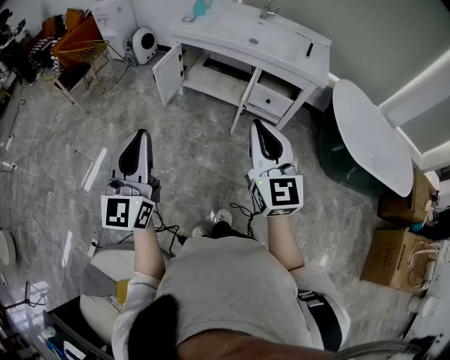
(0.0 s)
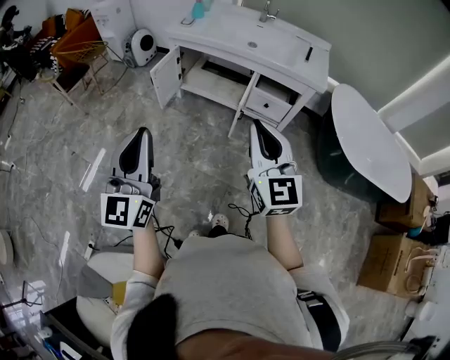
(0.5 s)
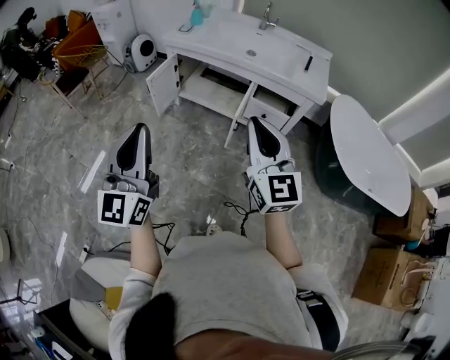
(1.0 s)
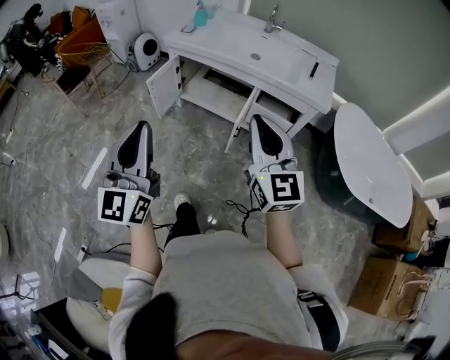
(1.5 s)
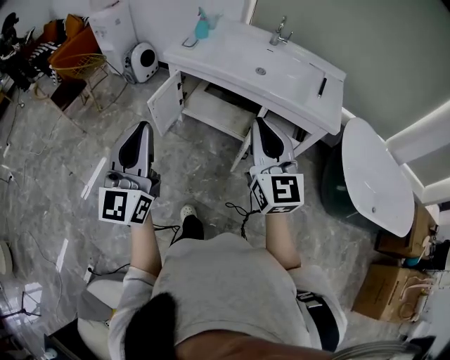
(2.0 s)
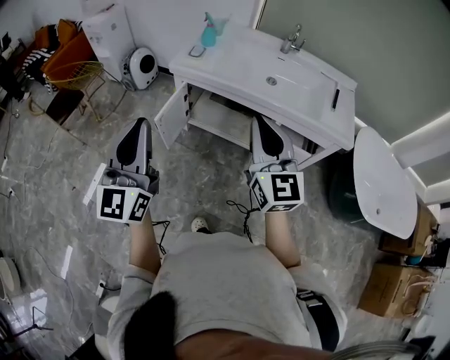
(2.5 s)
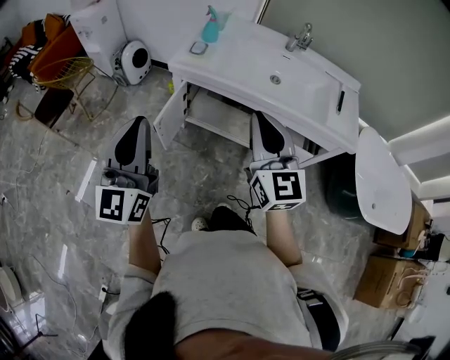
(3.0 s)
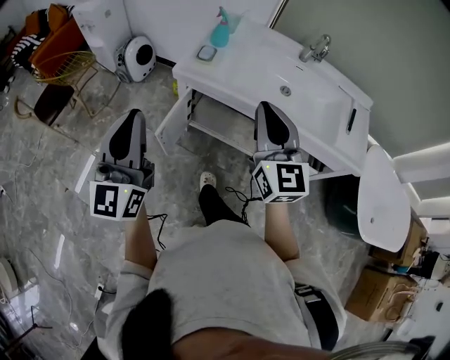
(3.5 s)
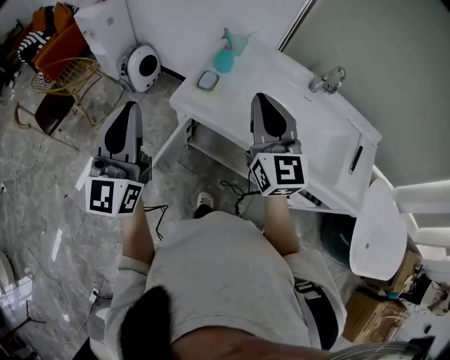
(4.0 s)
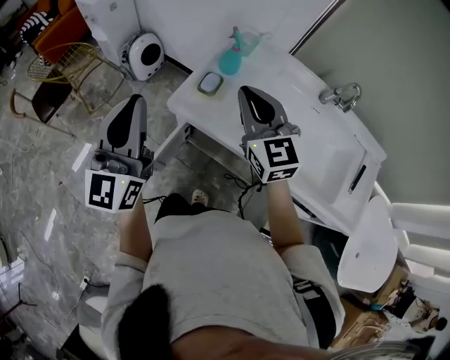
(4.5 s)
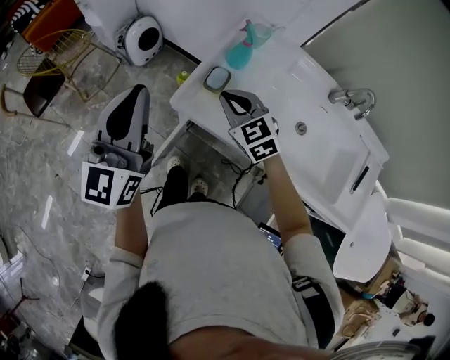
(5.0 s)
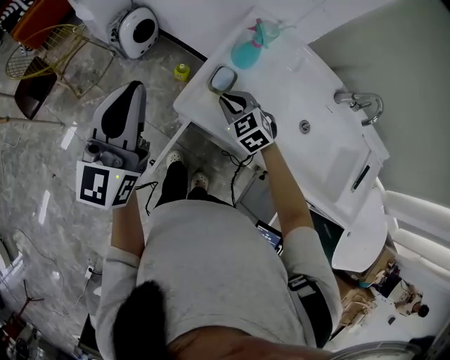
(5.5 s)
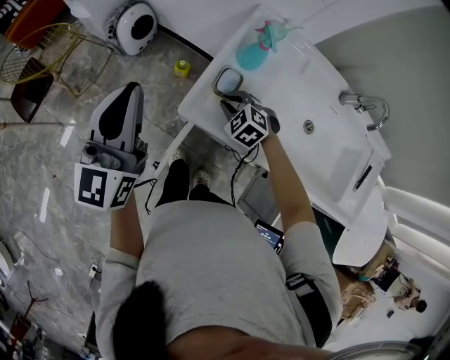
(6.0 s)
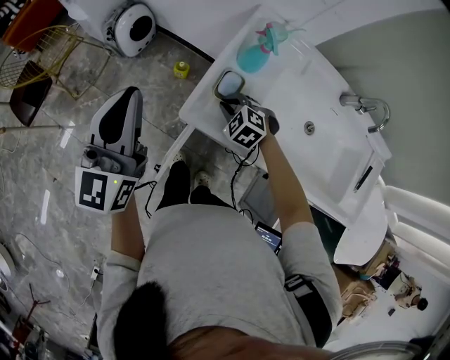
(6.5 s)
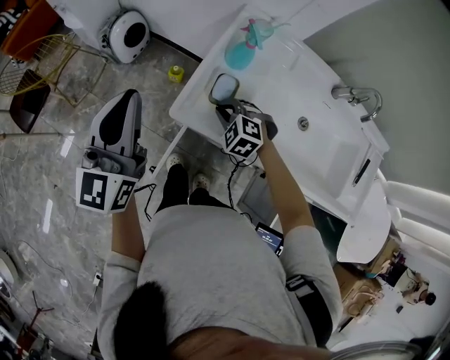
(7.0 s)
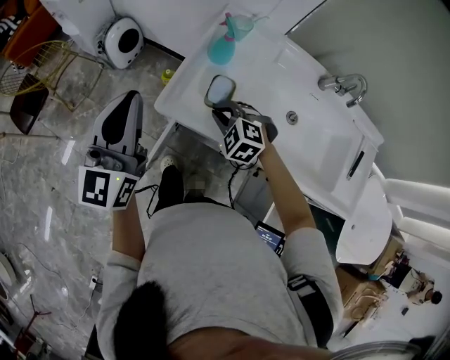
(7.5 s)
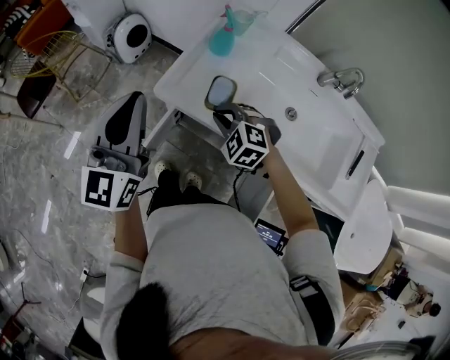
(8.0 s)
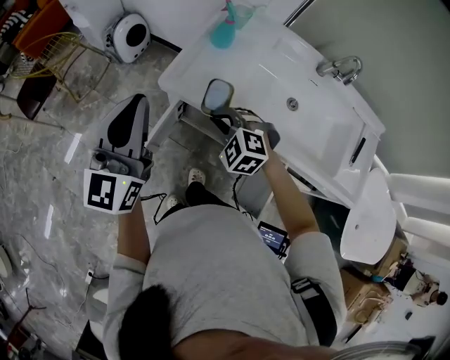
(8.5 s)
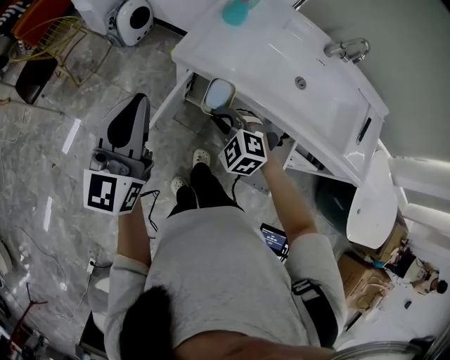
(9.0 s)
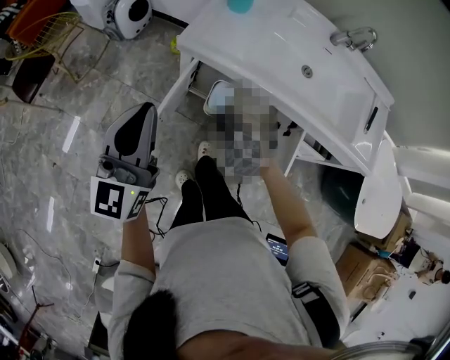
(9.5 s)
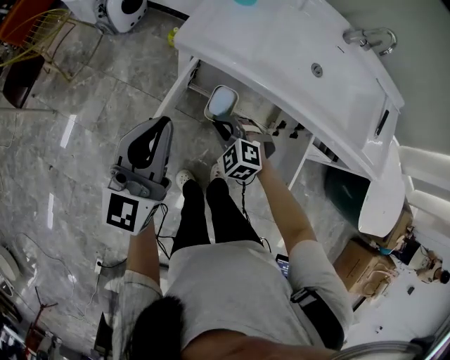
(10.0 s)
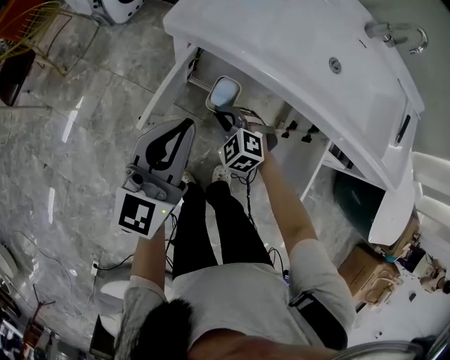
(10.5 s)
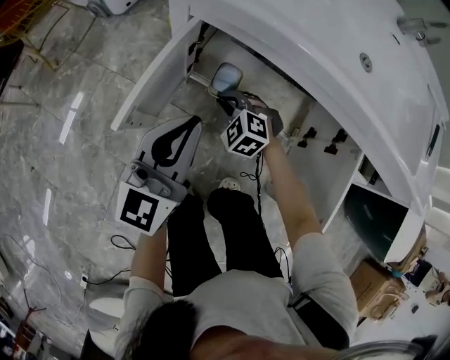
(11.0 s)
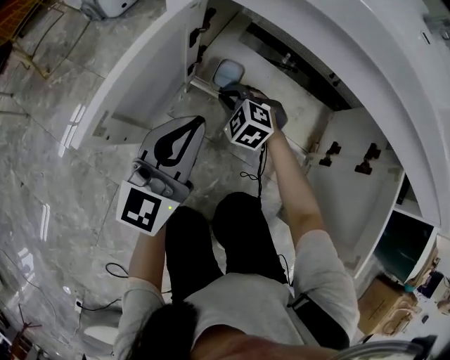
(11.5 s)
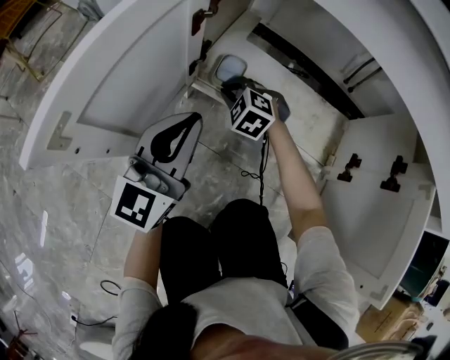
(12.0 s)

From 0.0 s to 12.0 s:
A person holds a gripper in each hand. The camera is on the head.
From 0.0 s to 2.0 s: The two grippers go some 25 cm forward.
From 2.0 s to 4.0 s: The pair of grippers is taken forward, roughly 50 cm.
From 4.0 s to 6.0 s: The left gripper moves forward and downward, approximately 25 cm. The right gripper heads downward and forward, covering some 40 cm, and tilts its fingers some 60 degrees downward.
From 6.0 s to 8.0 s: The right gripper shifts approximately 15 cm backward and upward; the left gripper shifts approximately 15 cm backward and to the right.
From 8.0 s to 10.0 s: The grippers both shift downward, backward and to the left by about 20 cm.
From 10.0 s to 12.0 s: The right gripper heads downward and forward, covering roughly 50 cm; the left gripper goes approximately 50 cm downward.

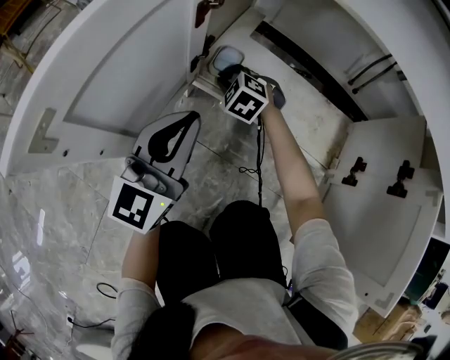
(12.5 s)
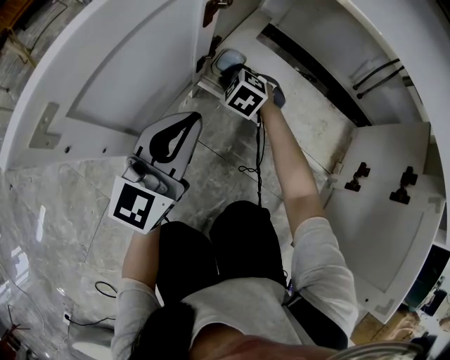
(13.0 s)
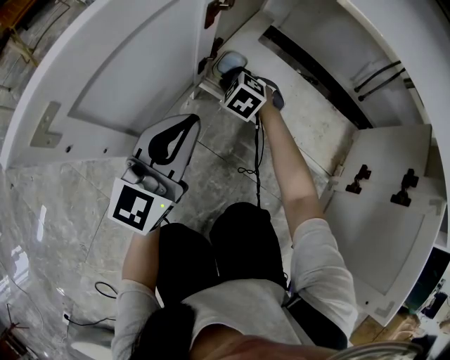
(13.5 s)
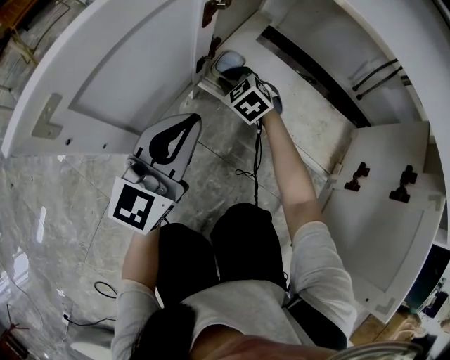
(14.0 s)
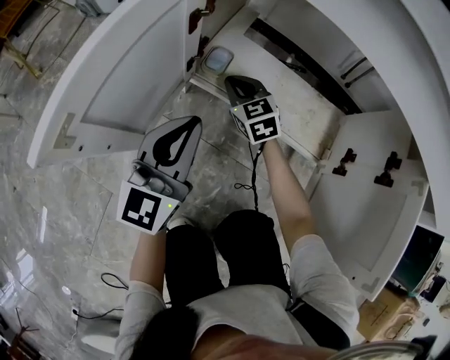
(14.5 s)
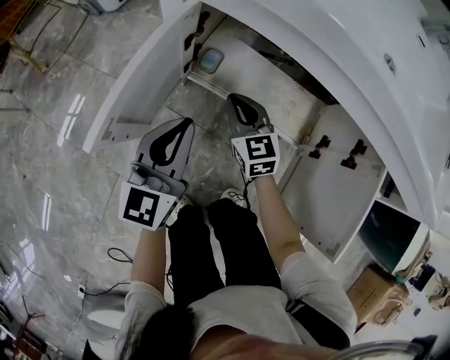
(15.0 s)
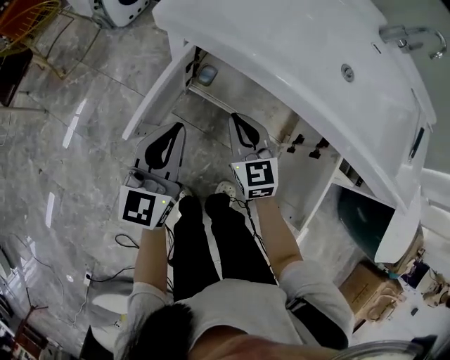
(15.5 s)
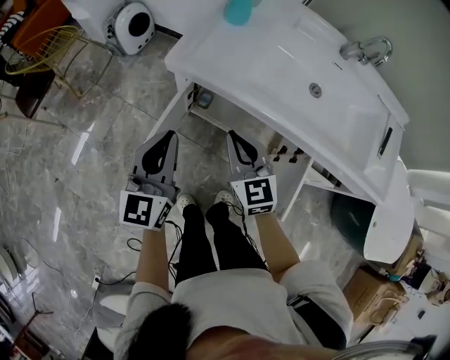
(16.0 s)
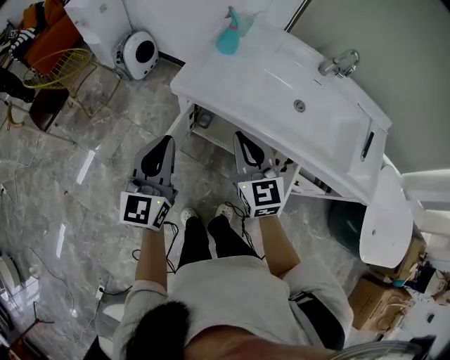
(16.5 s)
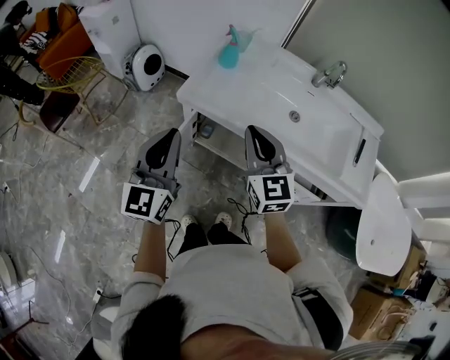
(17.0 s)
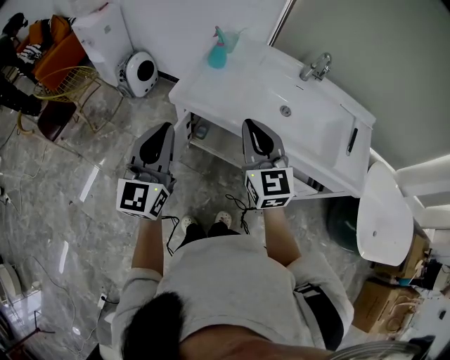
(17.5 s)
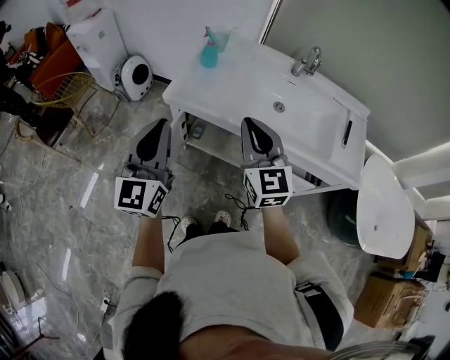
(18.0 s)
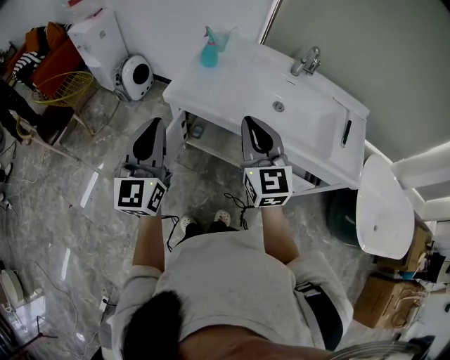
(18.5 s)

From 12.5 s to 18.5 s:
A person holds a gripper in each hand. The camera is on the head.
From 12.5 s to 14.5 s: The right gripper moves upward, about 10 cm, and swivels about 40 degrees.
From 14.5 s to 16.5 s: The grippers both shift upward by roughly 60 cm. The right gripper swivels about 20 degrees.
From 16.5 s to 18.5 s: The left gripper shifts about 15 cm upward and backward; the right gripper moves upward, to the right and backward, approximately 15 cm.

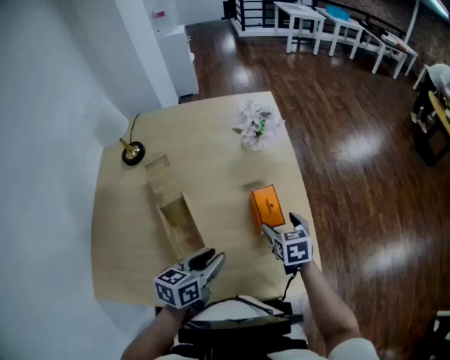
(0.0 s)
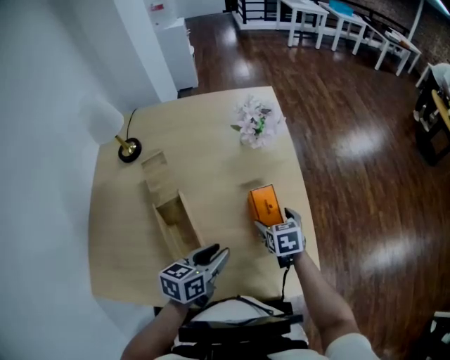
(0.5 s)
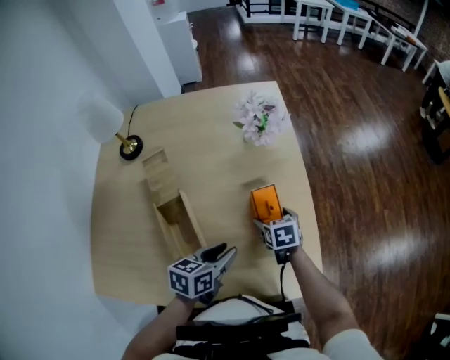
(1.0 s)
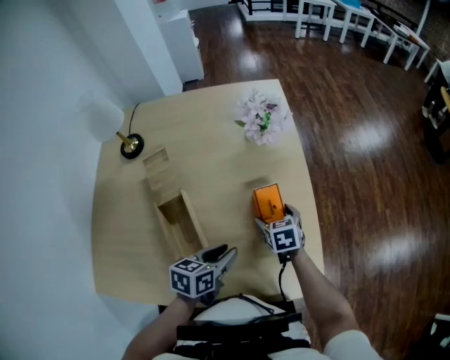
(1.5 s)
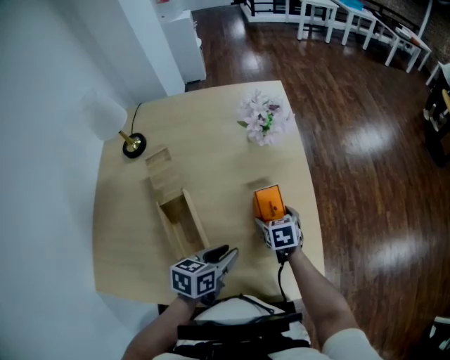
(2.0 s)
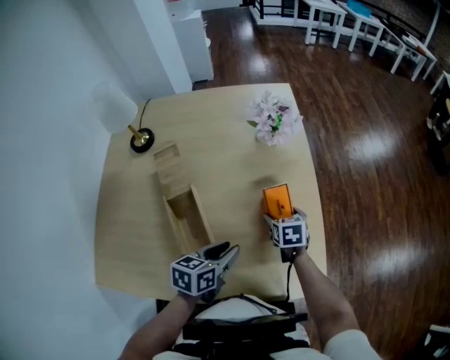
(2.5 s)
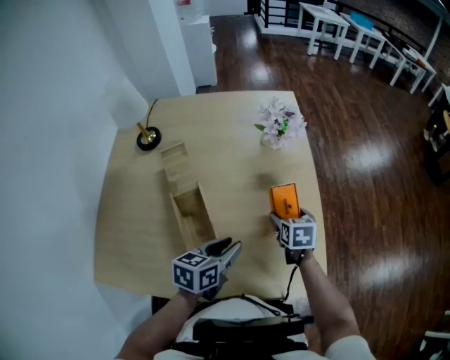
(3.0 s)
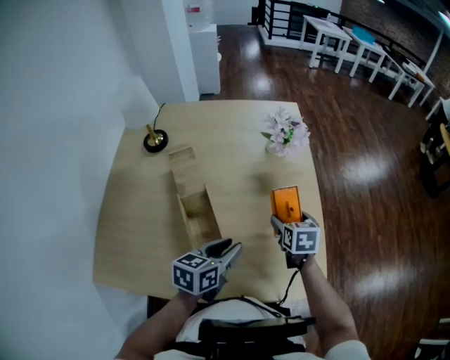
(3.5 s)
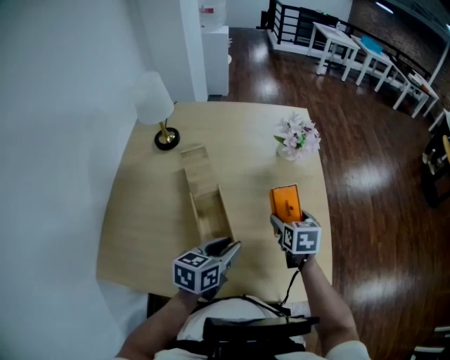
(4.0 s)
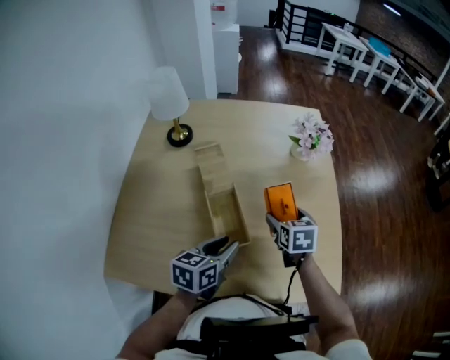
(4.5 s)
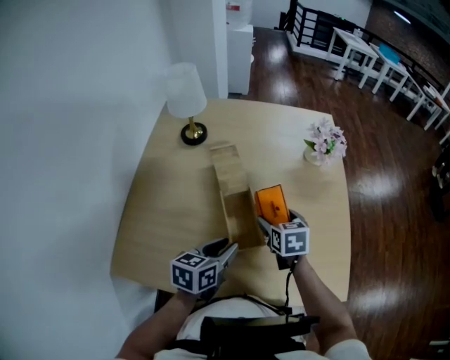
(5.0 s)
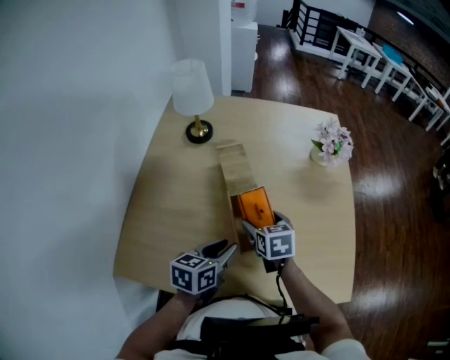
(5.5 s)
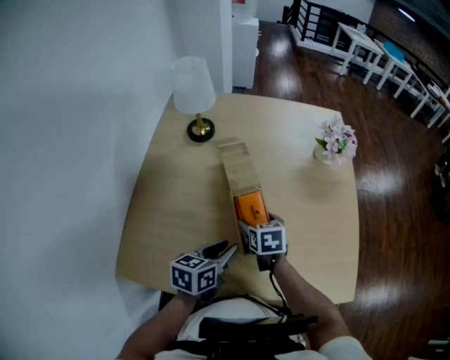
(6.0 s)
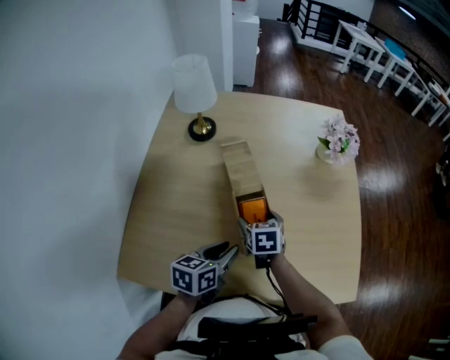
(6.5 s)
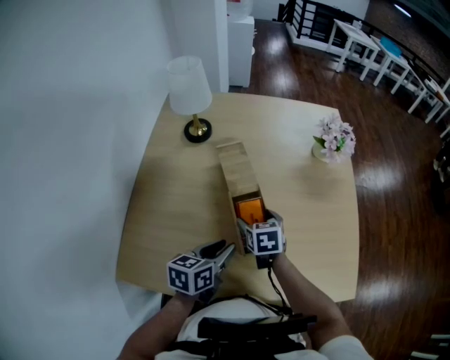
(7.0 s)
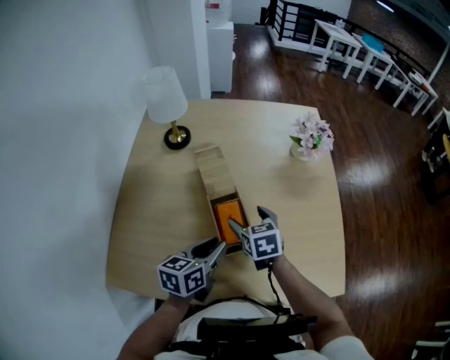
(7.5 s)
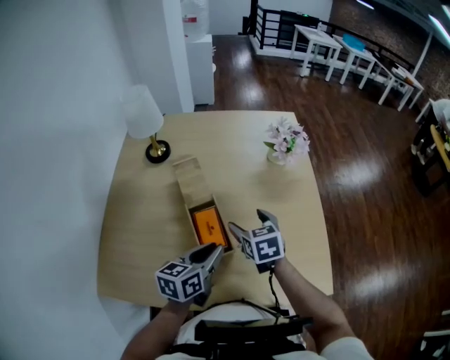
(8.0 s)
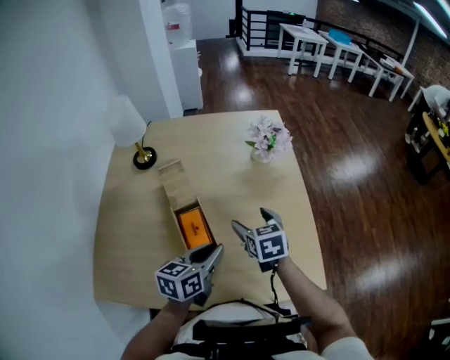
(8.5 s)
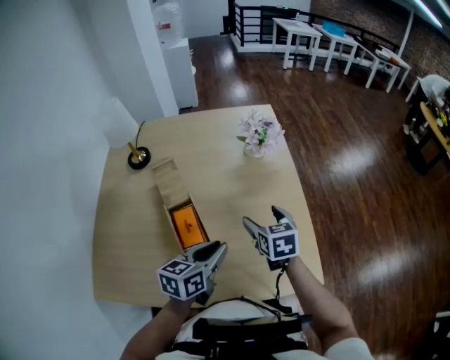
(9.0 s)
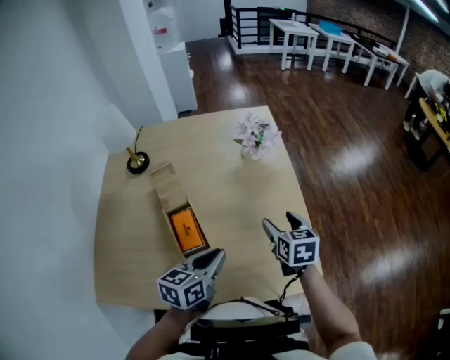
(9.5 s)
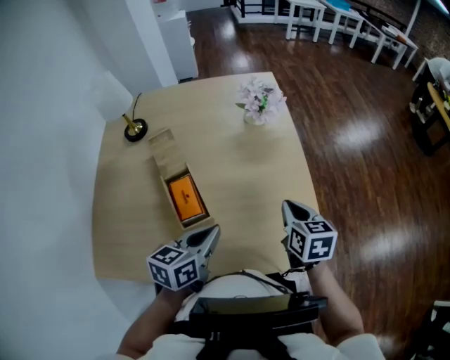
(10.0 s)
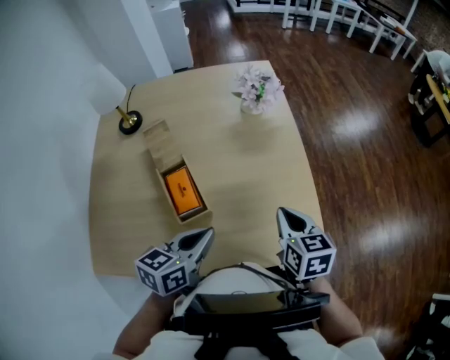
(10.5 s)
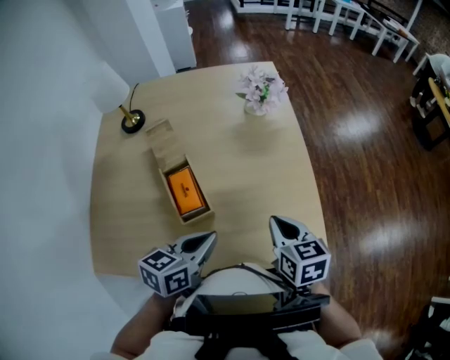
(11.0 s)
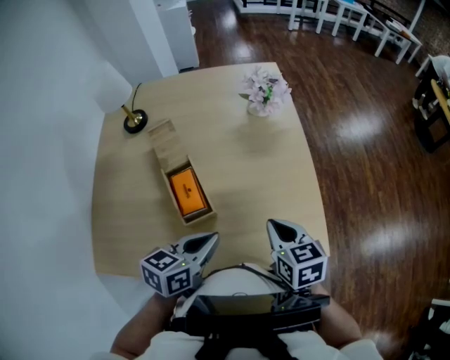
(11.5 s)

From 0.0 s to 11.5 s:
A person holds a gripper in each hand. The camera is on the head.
From 0.0 s to 2.0 s: The left gripper ends up about 5 cm from where it was, while the right gripper heads downward, covering about 10 cm.
From 2.0 s to 4.0 s: The right gripper heads upward and to the left, covering about 15 cm, while the left gripper moves to the left and upward, approximately 10 cm.
From 4.0 s to 6.0 s: The right gripper shifts approximately 25 cm to the left. The left gripper moves to the left, roughly 15 cm.
From 6.0 s to 7.5 s: The right gripper is displaced upward by roughly 5 cm.
From 7.5 s to 9.5 s: The right gripper heads to the right, covering some 30 cm, and changes its angle by about 20 degrees. Meanwhile the left gripper is displaced to the right by about 15 cm.
From 9.5 s to 11.5 s: The right gripper heads backward, covering about 10 cm, and closes up.
